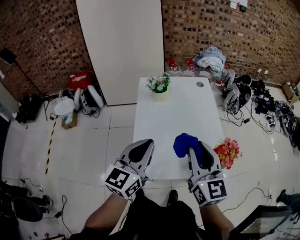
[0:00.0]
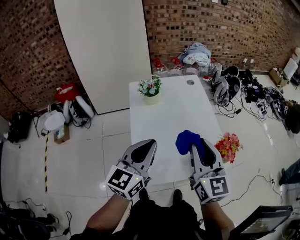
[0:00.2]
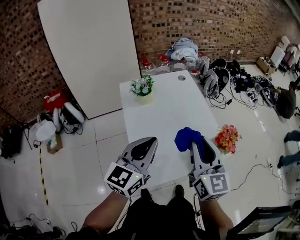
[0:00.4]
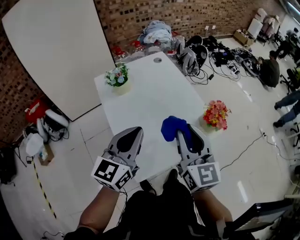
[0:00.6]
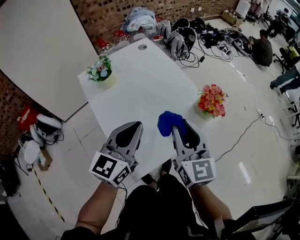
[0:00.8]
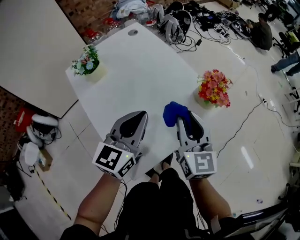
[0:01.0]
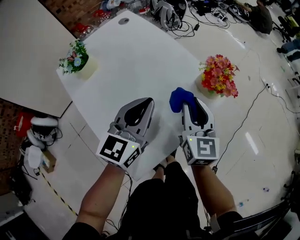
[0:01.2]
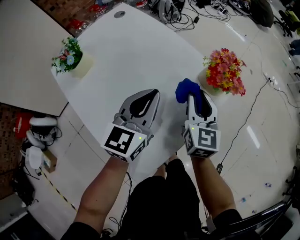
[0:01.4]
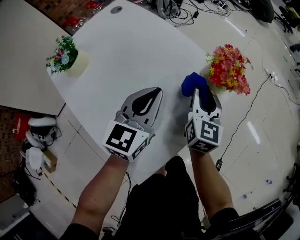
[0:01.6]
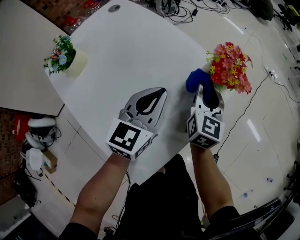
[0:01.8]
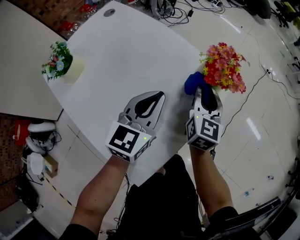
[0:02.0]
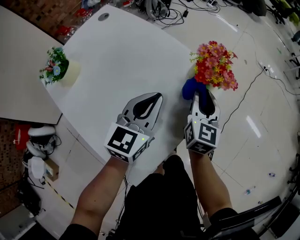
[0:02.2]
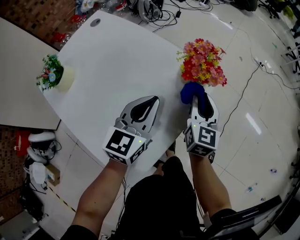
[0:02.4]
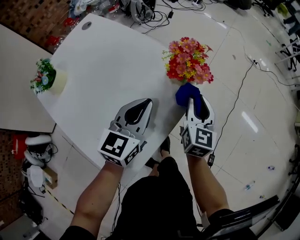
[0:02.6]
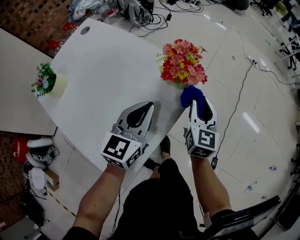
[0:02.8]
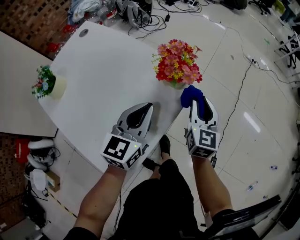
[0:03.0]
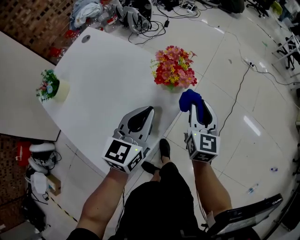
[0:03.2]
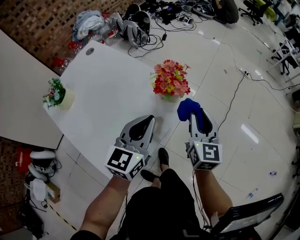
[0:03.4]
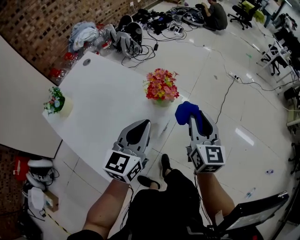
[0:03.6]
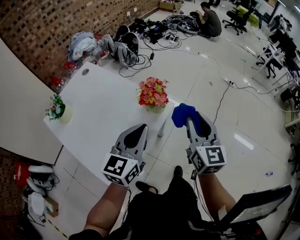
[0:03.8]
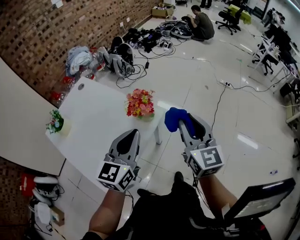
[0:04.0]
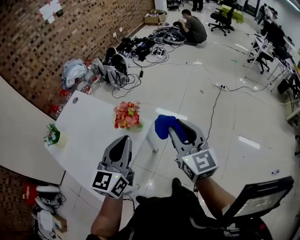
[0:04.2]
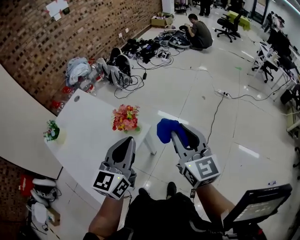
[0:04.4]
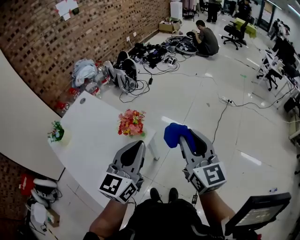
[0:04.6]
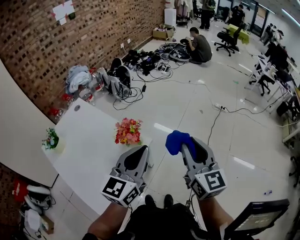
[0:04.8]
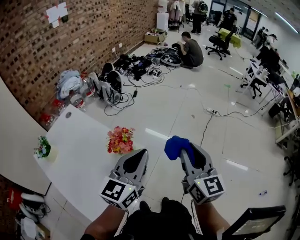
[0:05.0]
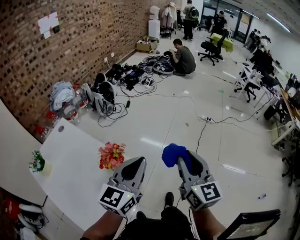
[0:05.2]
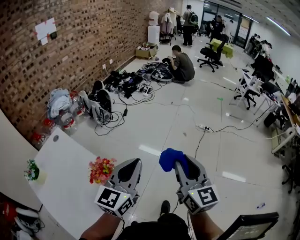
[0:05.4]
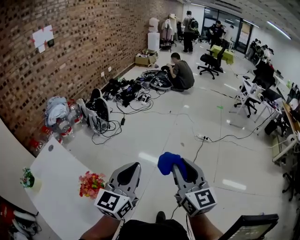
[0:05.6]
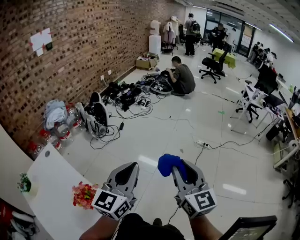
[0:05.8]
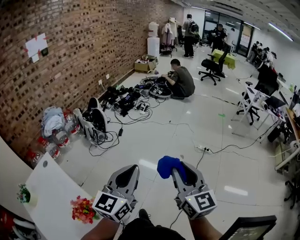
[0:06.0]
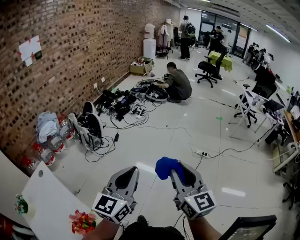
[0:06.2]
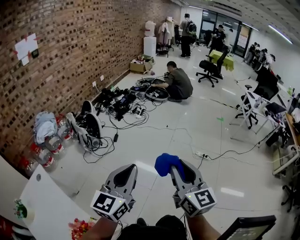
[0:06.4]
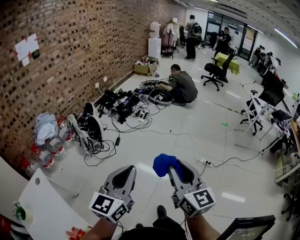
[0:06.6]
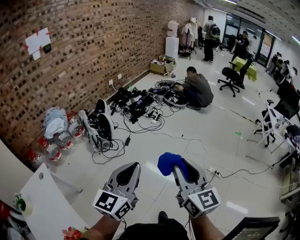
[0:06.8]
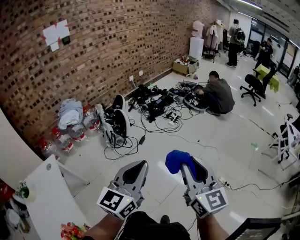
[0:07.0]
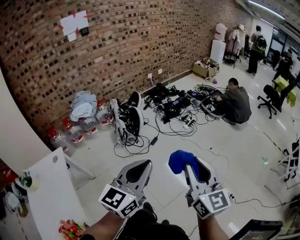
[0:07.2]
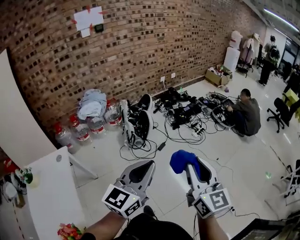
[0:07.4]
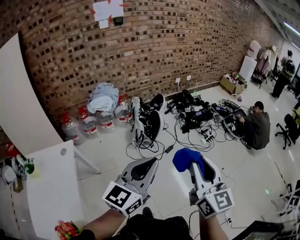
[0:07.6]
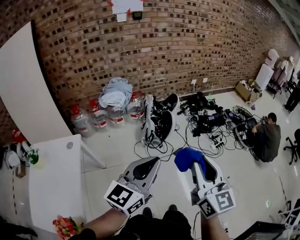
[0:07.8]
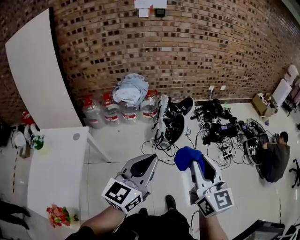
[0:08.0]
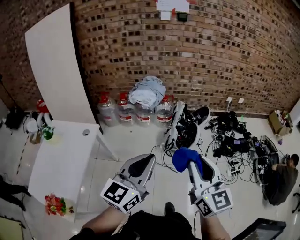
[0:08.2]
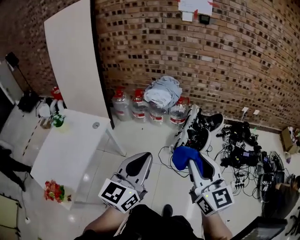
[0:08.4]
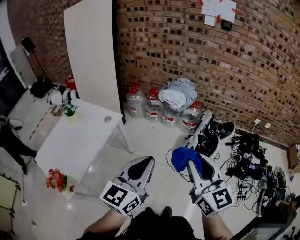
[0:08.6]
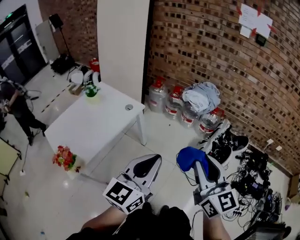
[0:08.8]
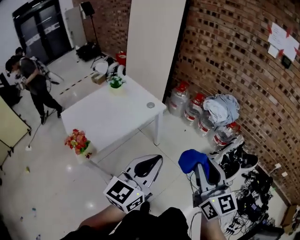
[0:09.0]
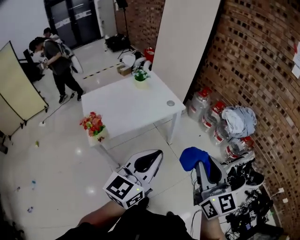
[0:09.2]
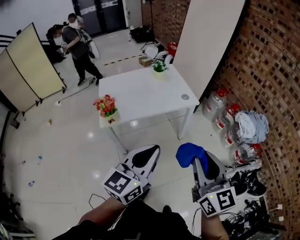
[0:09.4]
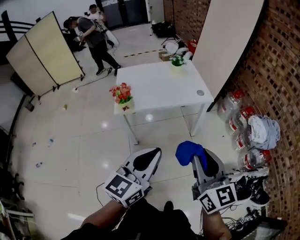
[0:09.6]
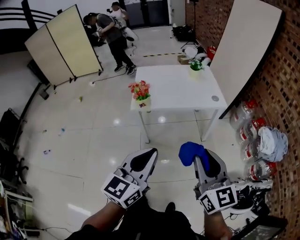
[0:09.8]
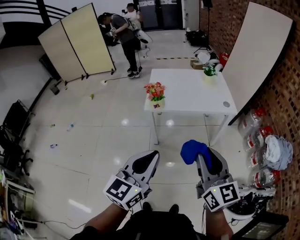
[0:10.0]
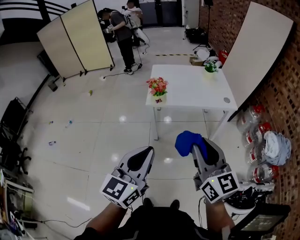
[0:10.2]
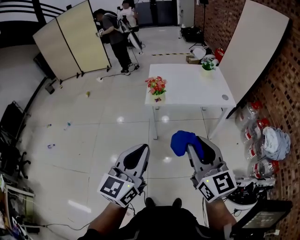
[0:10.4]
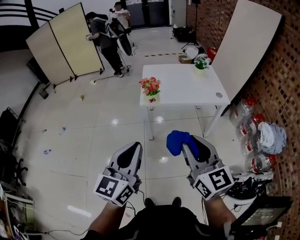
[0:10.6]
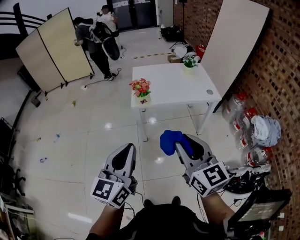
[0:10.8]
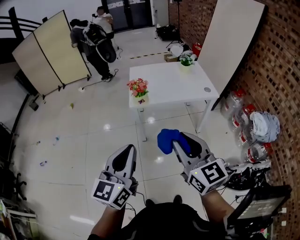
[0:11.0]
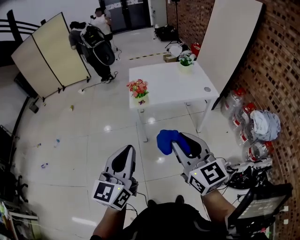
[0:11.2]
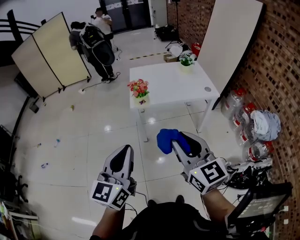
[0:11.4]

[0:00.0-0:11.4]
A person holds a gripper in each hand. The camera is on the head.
0:00.0 to 0:01.4: Both grippers travel together downward, about 25 cm. The left gripper turns by some 40 degrees. The right gripper turns by about 60 degrees.
0:01.4 to 0:02.8: The two grippers go roughly 15 cm to the right.
0:02.8 to 0:04.2: Both grippers travel together upward and to the right, approximately 25 cm. The right gripper changes its angle by about 30 degrees.
0:04.2 to 0:05.6: Both grippers move forward and to the right, some 30 cm.
0:05.6 to 0:07.2: The pair of grippers is taken forward, some 50 cm. The left gripper turns by about 20 degrees, while the right gripper rotates about 30 degrees.
0:07.2 to 0:08.6: The left gripper shifts by some 30 cm, and changes its angle by approximately 60 degrees. Meanwhile the right gripper moves about 40 cm, and rotates roughly 60 degrees.
0:08.6 to 0:10.0: The right gripper shifts by some 20 cm, and turns by roughly 70 degrees, while the left gripper shifts by about 25 cm, and swivels about 70 degrees.
0:10.0 to 0:11.4: Both grippers travel together to the left, some 10 cm.

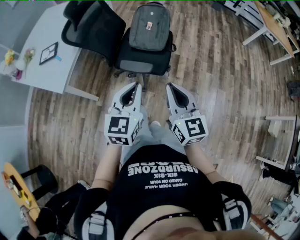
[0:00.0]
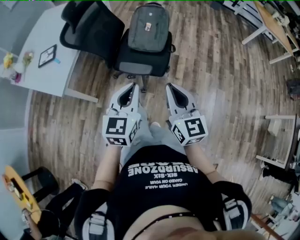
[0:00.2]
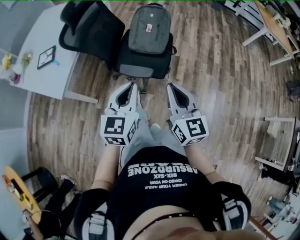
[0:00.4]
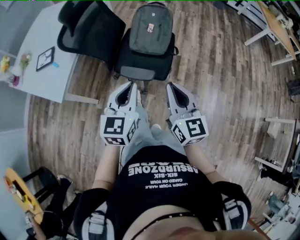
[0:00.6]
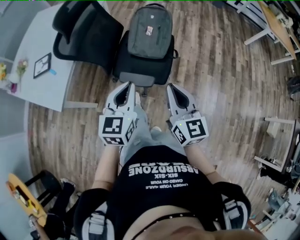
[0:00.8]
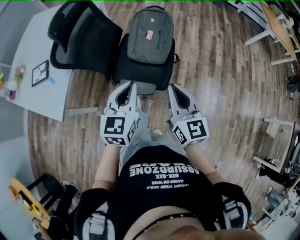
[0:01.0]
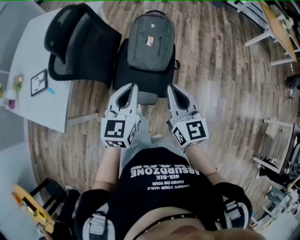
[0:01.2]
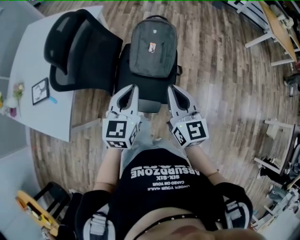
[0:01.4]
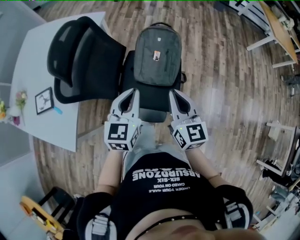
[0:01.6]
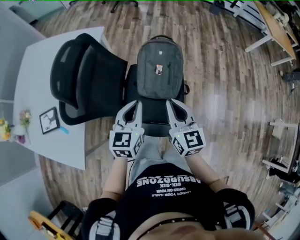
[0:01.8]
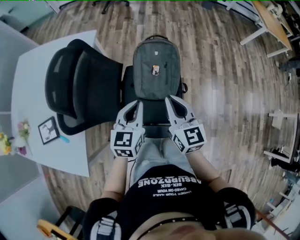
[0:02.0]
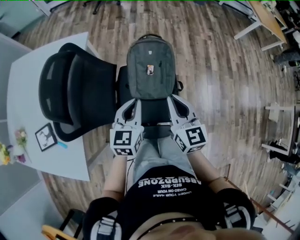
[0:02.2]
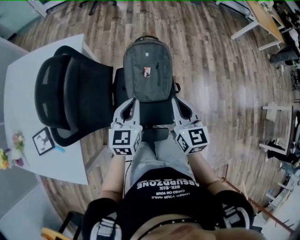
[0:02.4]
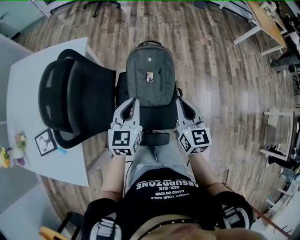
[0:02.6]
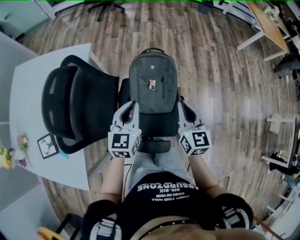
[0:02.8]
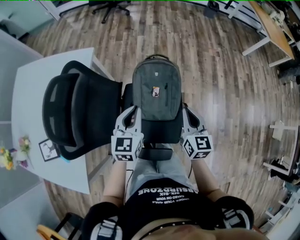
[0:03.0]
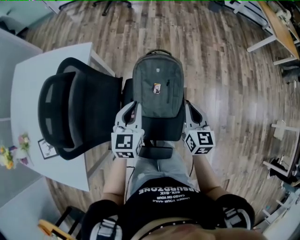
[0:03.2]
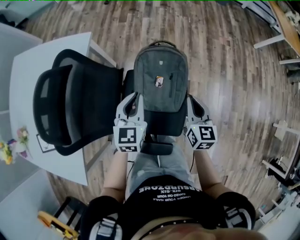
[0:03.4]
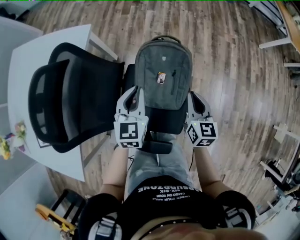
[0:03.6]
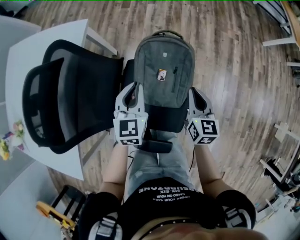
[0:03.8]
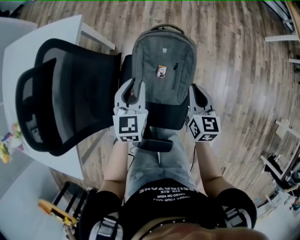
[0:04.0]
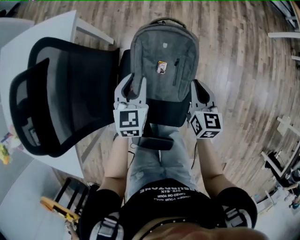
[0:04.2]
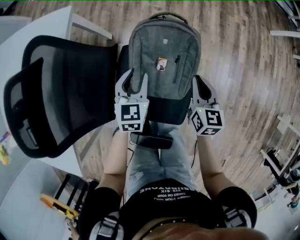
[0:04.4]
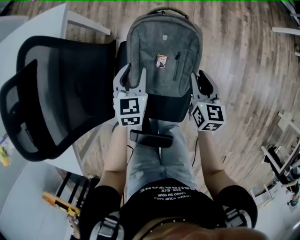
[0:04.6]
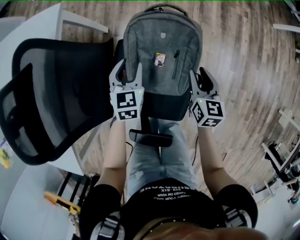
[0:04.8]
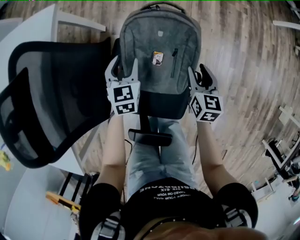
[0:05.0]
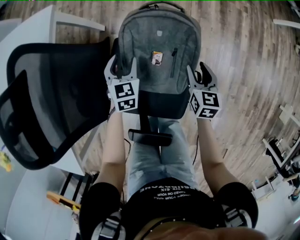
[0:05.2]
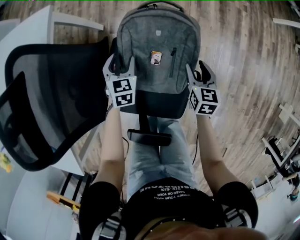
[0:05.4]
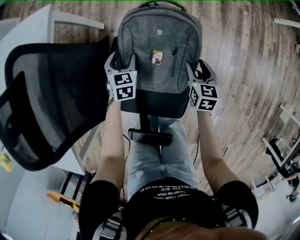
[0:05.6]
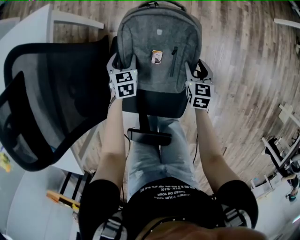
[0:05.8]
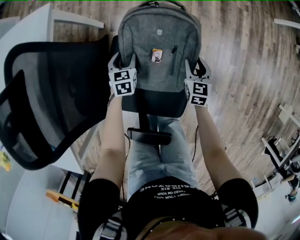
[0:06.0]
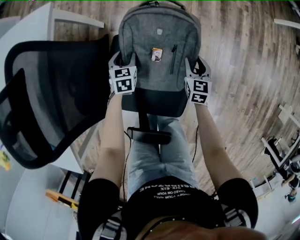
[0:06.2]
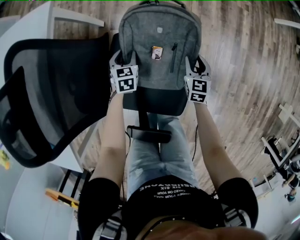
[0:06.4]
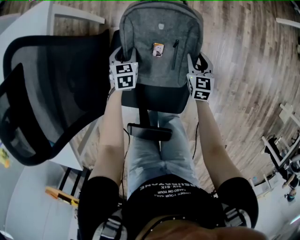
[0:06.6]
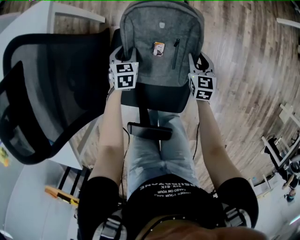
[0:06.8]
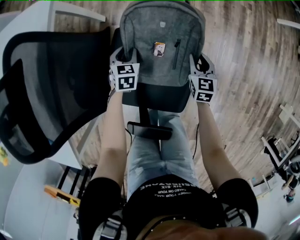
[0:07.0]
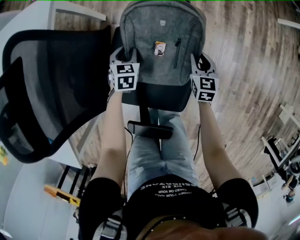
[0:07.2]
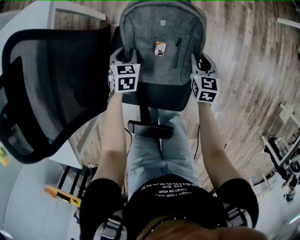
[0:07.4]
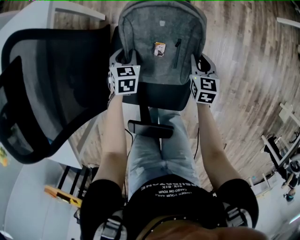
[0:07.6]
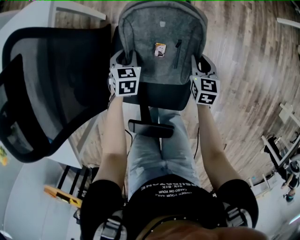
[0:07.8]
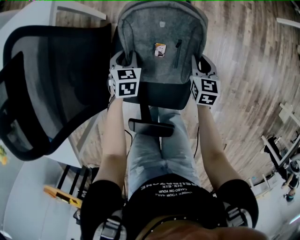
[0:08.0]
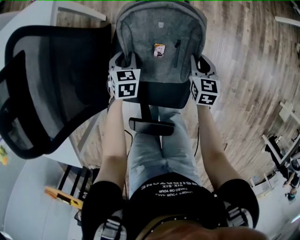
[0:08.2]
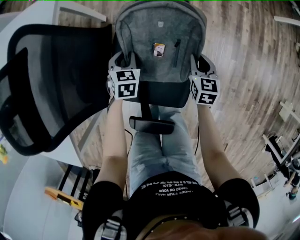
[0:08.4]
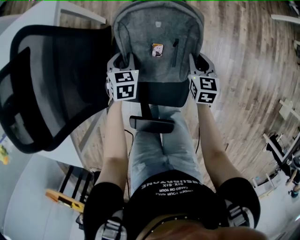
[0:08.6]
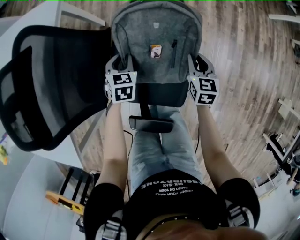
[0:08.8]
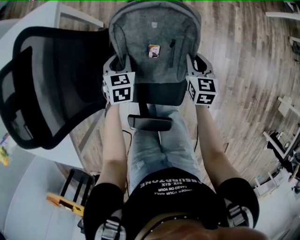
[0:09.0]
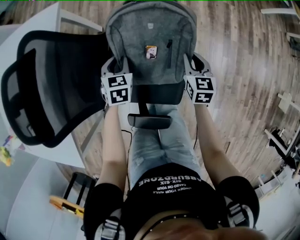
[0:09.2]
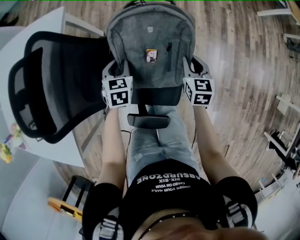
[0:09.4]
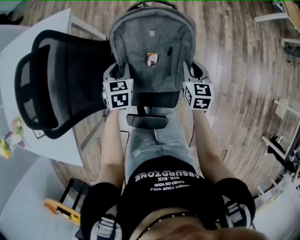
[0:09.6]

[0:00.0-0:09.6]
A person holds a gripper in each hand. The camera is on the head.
0:00.0 to 0:01.6: The two grippers go approximately 40 cm forward.
0:01.6 to 0:03.2: The left gripper goes approximately 20 cm forward, while the right gripper shifts about 25 cm forward and downward.
0:03.2 to 0:04.8: The two grippers go some 25 cm downward and forward. The right gripper opens its fingers, while the left gripper opens its fingers.
0:04.8 to 0:06.4: The two grippers go approximately 15 cm downward.
0:06.4 to 0:08.0: The right gripper changes place by approximately 5 cm. The left gripper changes place by approximately 5 cm.
0:08.0 to 0:09.6: Both grippers travel together upward, approximately 20 cm.

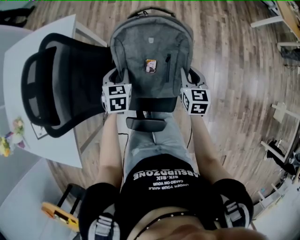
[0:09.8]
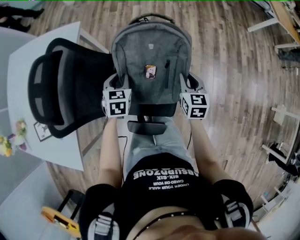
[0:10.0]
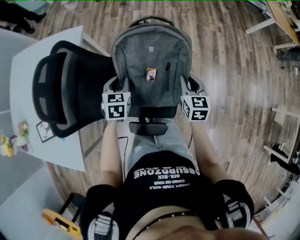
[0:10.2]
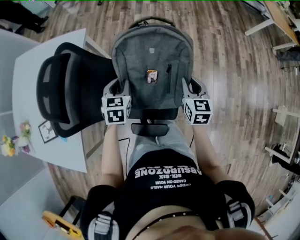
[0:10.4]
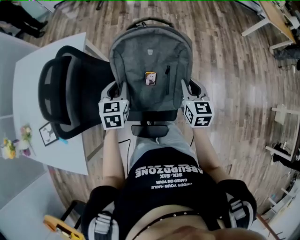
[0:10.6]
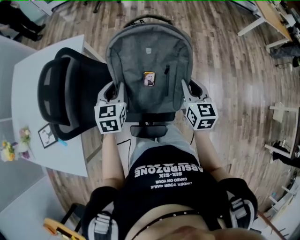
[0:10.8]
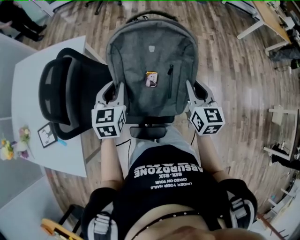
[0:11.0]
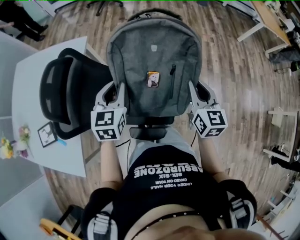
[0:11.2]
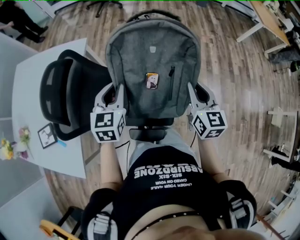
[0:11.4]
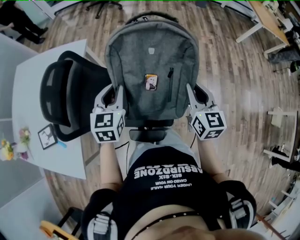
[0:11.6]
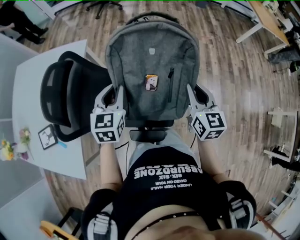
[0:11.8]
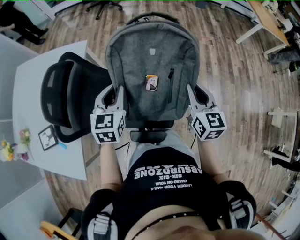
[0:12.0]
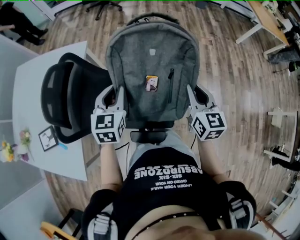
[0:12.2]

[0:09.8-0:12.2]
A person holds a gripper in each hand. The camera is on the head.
0:09.8 to 0:11.0: The right gripper is displaced upward and backward by approximately 20 cm. Meanwhile the left gripper moves upward, approximately 20 cm, and changes its angle by approximately 20 degrees.
0:11.0 to 0:12.2: There are only small adjustments of the grippers.
